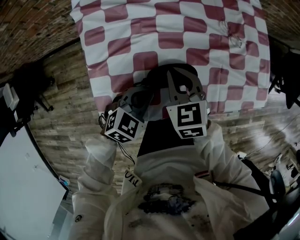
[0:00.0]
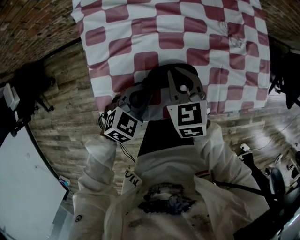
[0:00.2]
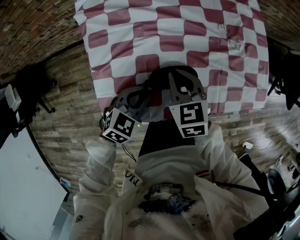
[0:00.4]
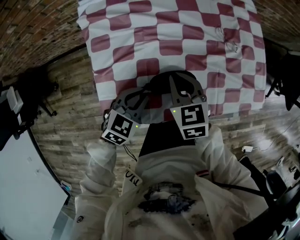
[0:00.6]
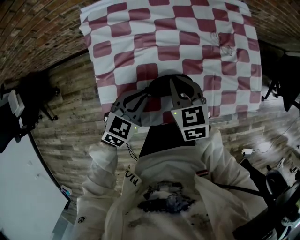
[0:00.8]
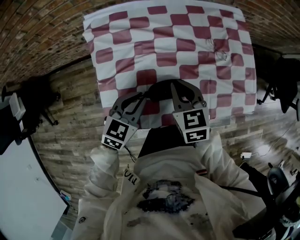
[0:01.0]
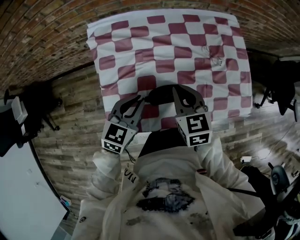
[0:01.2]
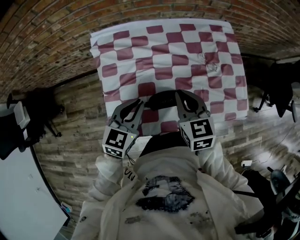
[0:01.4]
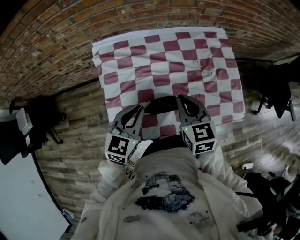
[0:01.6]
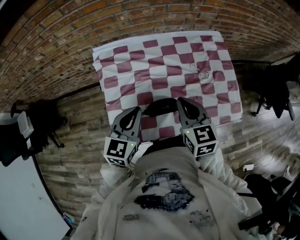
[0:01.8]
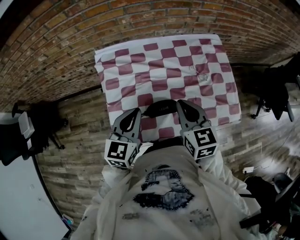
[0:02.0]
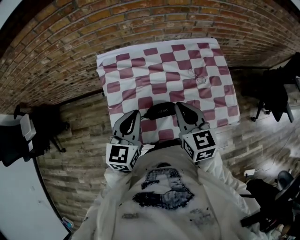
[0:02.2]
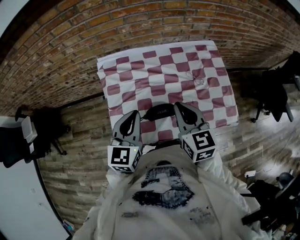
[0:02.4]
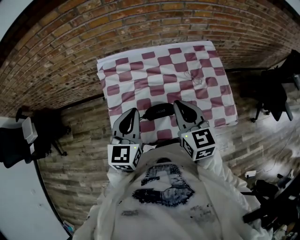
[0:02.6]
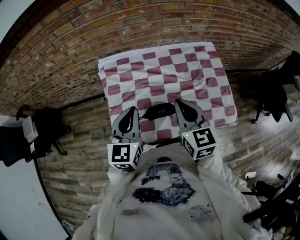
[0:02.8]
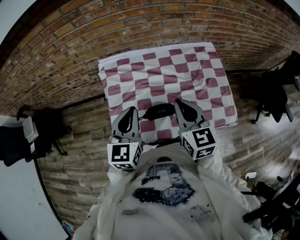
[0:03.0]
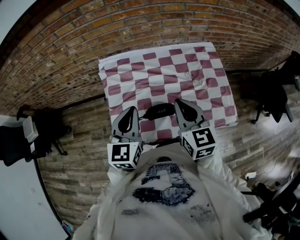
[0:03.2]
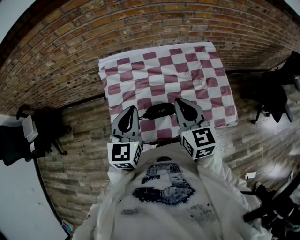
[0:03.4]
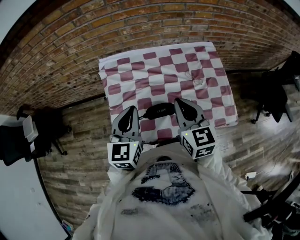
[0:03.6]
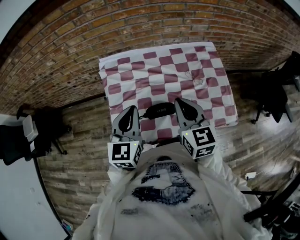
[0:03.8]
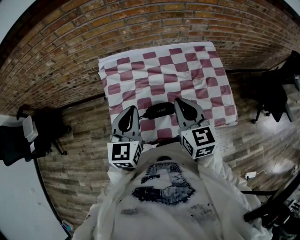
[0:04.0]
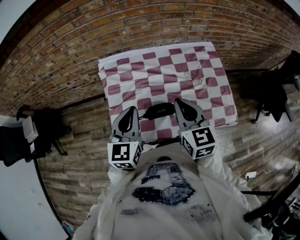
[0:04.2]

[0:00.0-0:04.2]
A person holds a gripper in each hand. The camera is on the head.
0:00.0 to 0:01.4: Both grippers move upward, roughly 15 cm. The left gripper turns by some 30 degrees.
0:01.4 to 0:02.8: Both grippers travel together upward, approximately 15 cm. The left gripper changes its angle by about 20 degrees.
0:02.8 to 0:04.2: Both grippers stay about where they are.

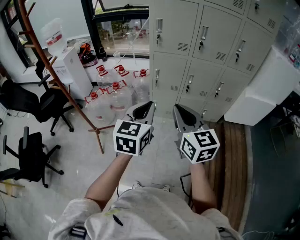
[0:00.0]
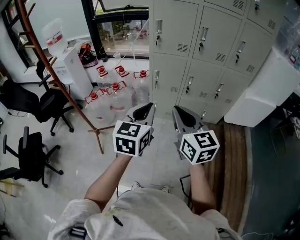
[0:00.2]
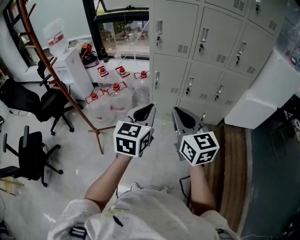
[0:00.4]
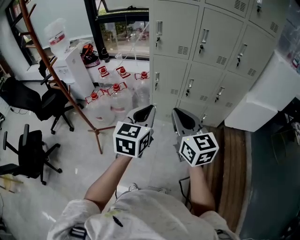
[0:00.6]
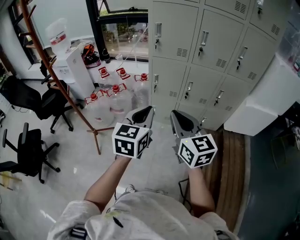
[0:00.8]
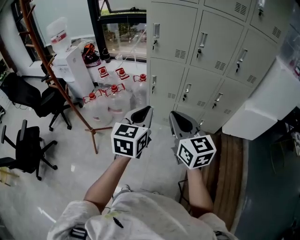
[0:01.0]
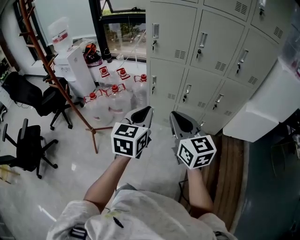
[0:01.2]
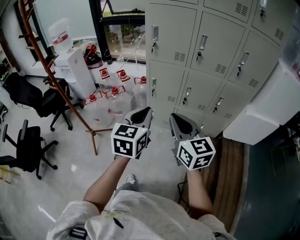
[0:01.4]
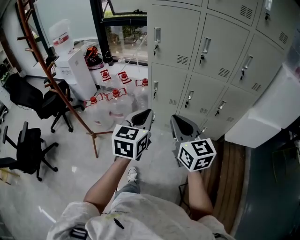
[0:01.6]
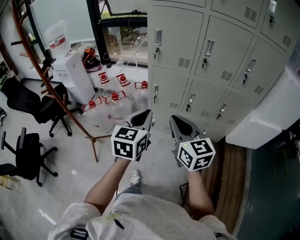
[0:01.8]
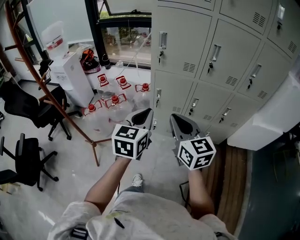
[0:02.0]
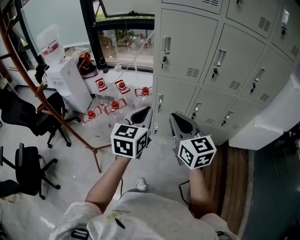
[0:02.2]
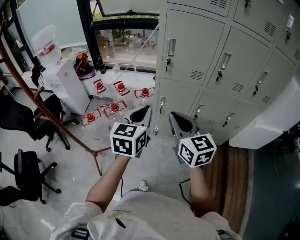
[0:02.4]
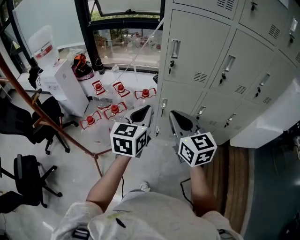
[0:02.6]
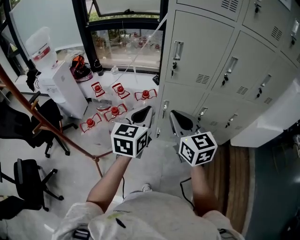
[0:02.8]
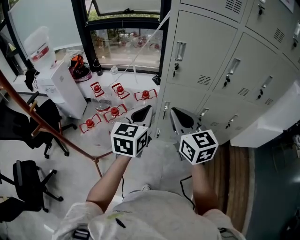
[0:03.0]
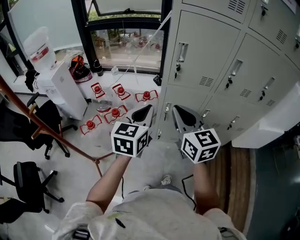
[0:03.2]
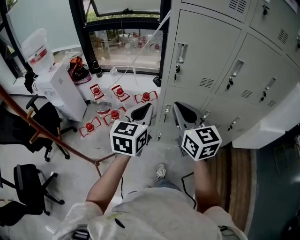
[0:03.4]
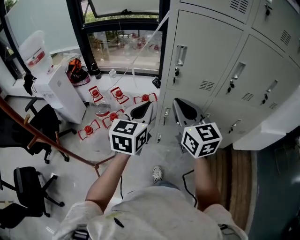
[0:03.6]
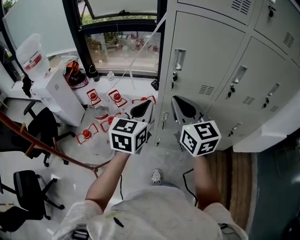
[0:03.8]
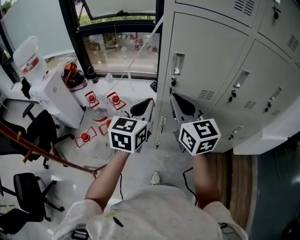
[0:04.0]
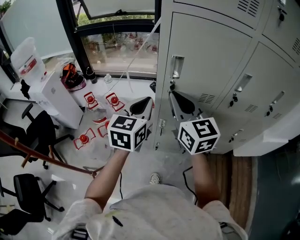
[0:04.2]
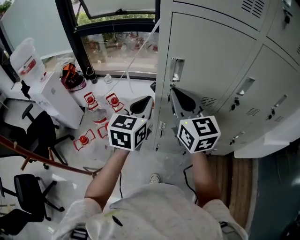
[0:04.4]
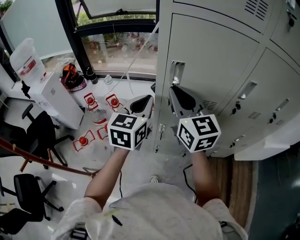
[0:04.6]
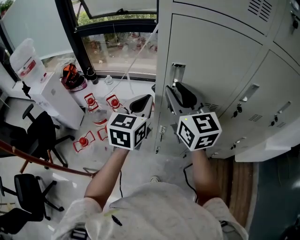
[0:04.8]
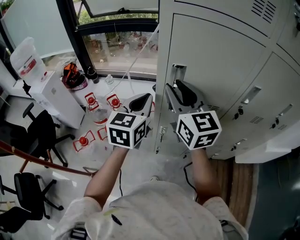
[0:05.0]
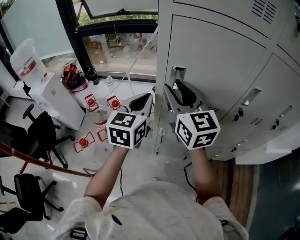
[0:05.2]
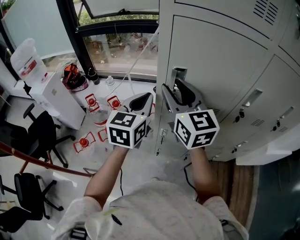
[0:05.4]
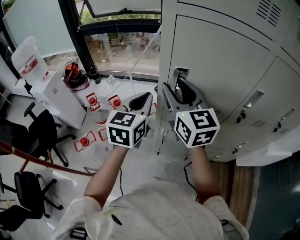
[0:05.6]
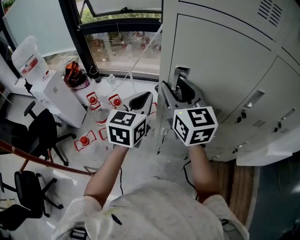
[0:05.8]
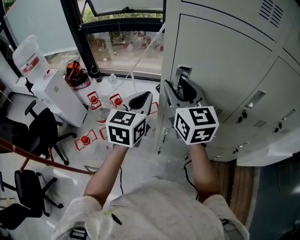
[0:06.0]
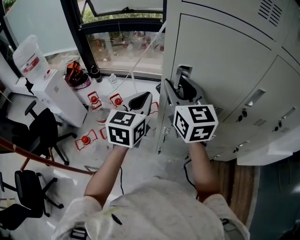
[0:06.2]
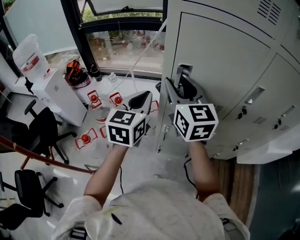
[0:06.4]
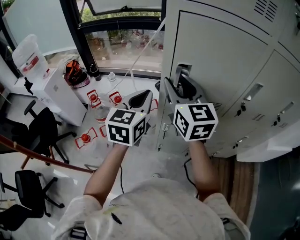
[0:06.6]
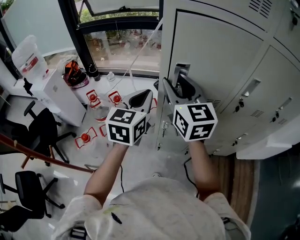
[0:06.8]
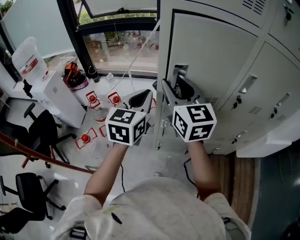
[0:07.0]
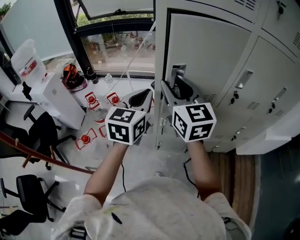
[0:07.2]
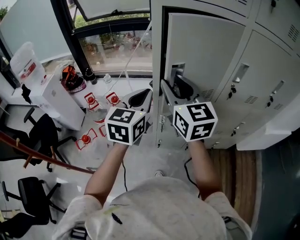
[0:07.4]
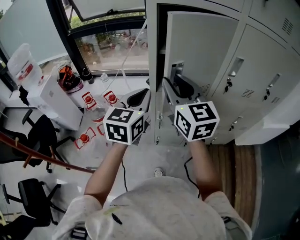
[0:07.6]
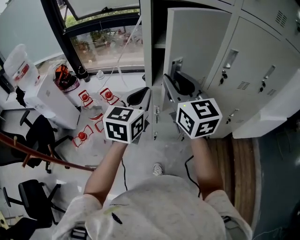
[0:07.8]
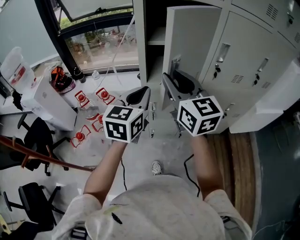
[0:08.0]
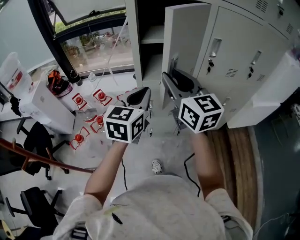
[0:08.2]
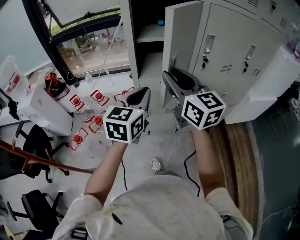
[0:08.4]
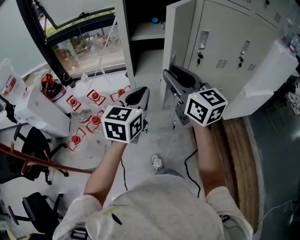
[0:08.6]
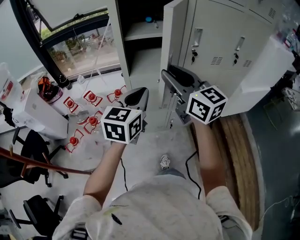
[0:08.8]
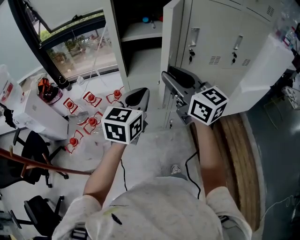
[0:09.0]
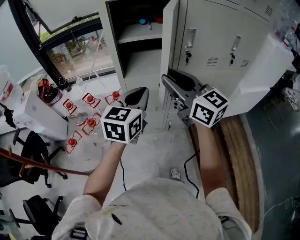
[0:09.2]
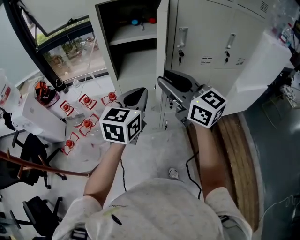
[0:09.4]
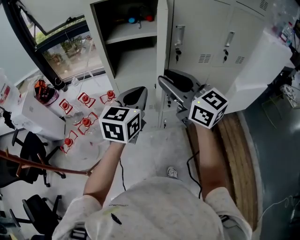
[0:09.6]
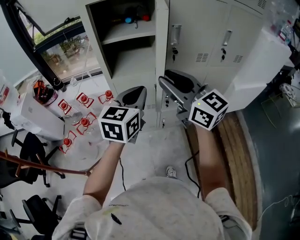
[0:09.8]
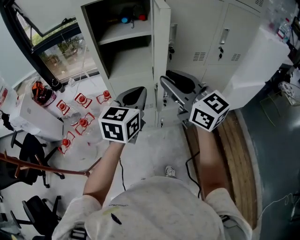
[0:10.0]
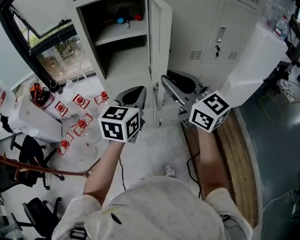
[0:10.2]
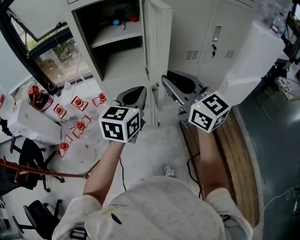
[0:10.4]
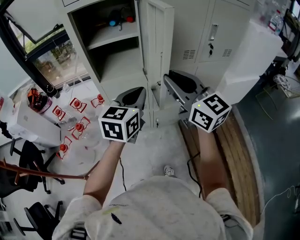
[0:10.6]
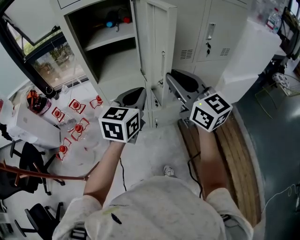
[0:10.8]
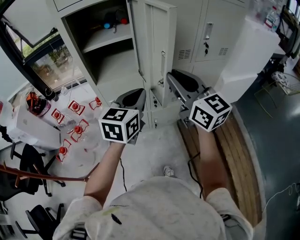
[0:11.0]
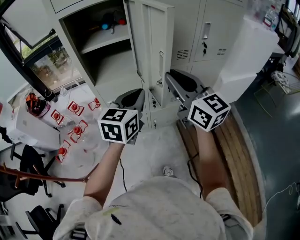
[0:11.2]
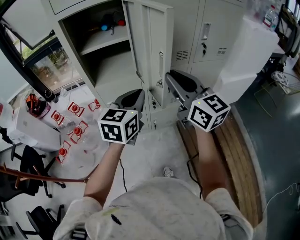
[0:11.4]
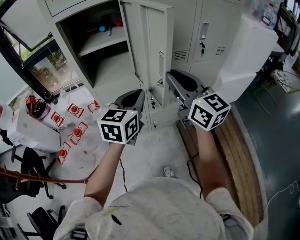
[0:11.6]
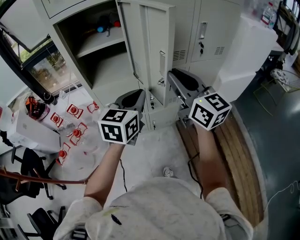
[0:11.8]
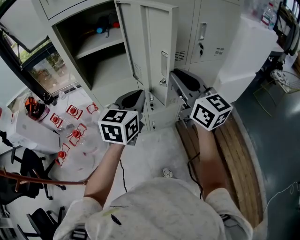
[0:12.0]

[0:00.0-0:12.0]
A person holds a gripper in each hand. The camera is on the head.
0:00.0 to 0:01.6: Both grippers move to the right and forward, about 10 cm.
0:01.6 to 0:03.0: The two grippers go approximately 30 cm forward and to the left.
0:03.0 to 0:04.4: Both grippers move forward, approximately 20 cm.
0:04.4 to 0:06.0: The two grippers go approximately 5 cm forward. The right gripper opens.
0:06.0 to 0:07.6: The two grippers go approximately 10 cm backward.
0:07.6 to 0:09.0: Both grippers travel together to the right and backward, about 15 cm.
0:09.0 to 0:10.4: Both grippers move to the right, approximately 10 cm.
0:10.4 to 0:12.0: The right gripper moves to the right, about 10 cm; the left gripper goes some 5 cm to the right.

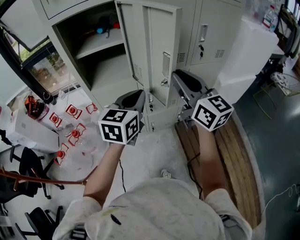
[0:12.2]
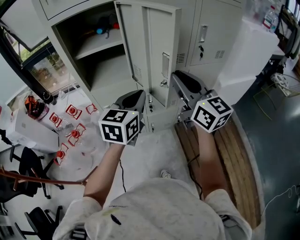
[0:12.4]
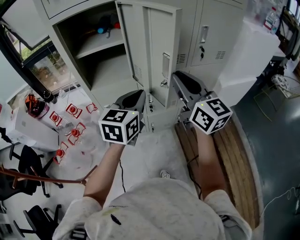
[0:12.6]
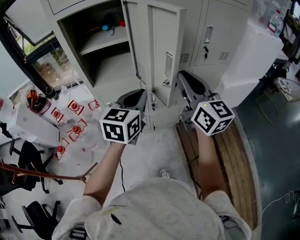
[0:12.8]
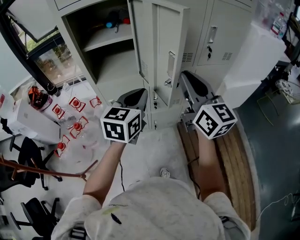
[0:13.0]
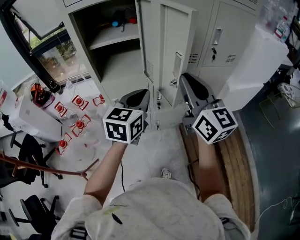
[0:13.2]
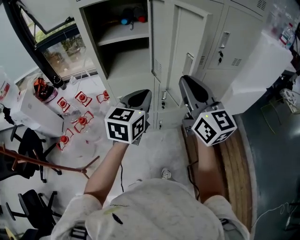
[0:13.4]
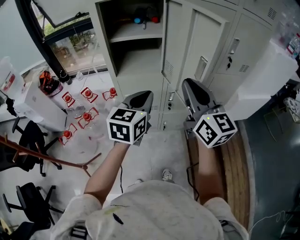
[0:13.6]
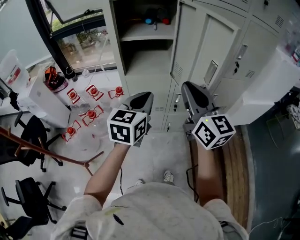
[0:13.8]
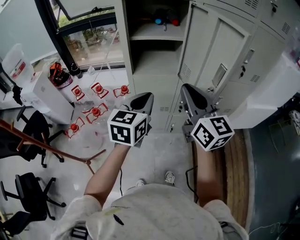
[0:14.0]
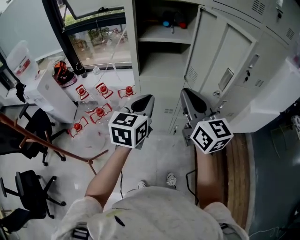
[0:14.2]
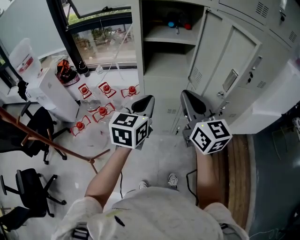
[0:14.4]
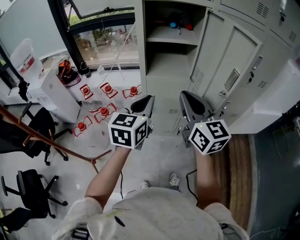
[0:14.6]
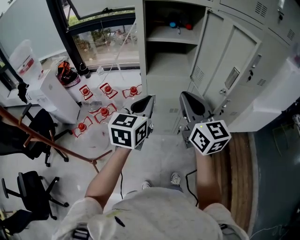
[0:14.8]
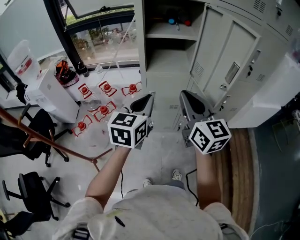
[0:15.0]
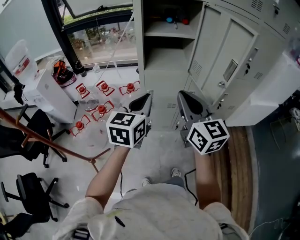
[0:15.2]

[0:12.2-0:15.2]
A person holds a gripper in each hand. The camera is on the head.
0:12.2 to 0:13.8: Both grippers move to the left, some 10 cm.
0:13.8 to 0:15.2: The two grippers go approximately 10 cm to the left.

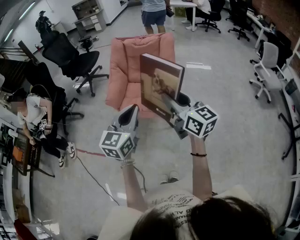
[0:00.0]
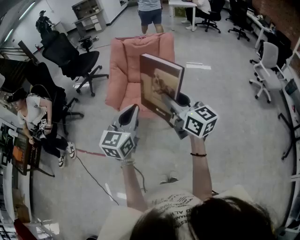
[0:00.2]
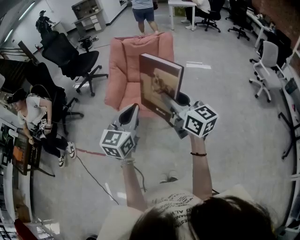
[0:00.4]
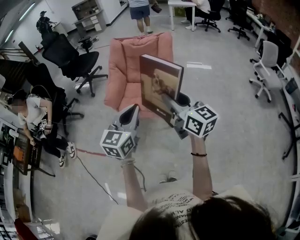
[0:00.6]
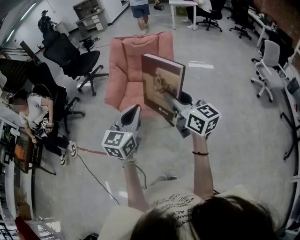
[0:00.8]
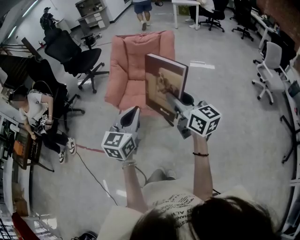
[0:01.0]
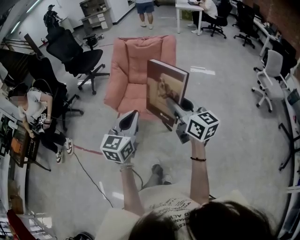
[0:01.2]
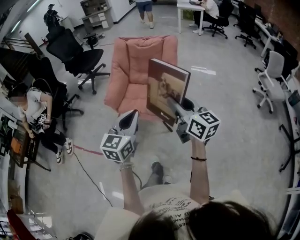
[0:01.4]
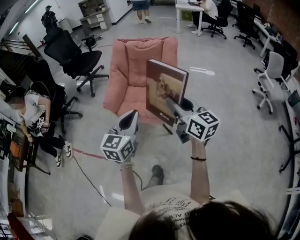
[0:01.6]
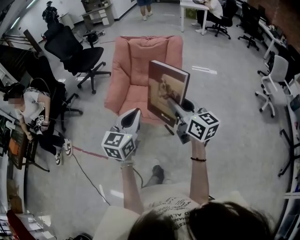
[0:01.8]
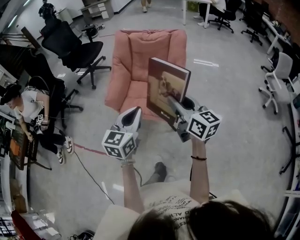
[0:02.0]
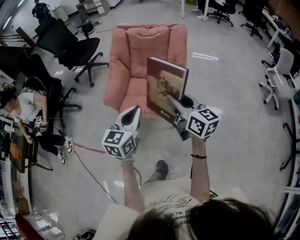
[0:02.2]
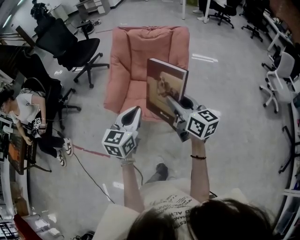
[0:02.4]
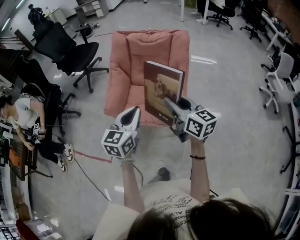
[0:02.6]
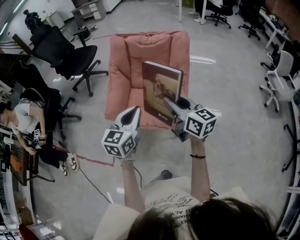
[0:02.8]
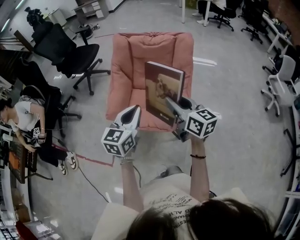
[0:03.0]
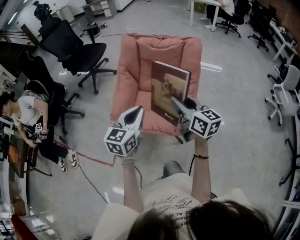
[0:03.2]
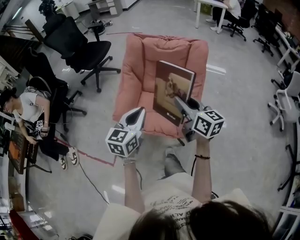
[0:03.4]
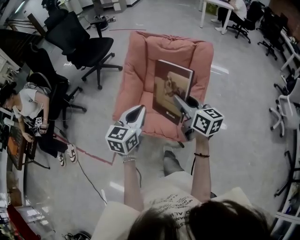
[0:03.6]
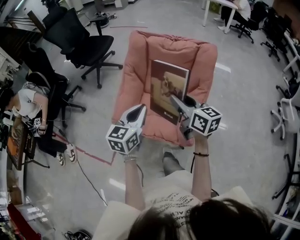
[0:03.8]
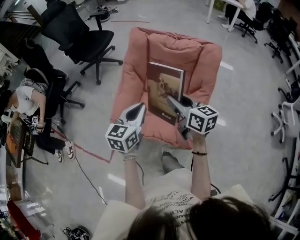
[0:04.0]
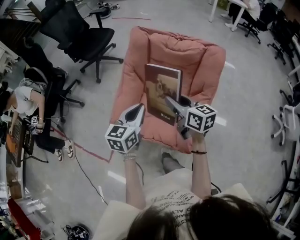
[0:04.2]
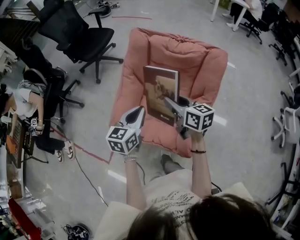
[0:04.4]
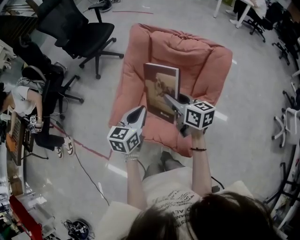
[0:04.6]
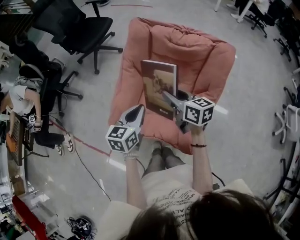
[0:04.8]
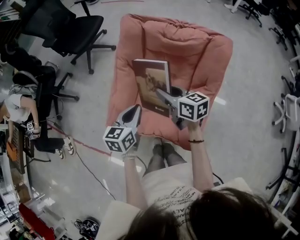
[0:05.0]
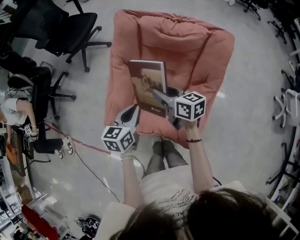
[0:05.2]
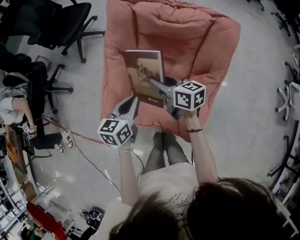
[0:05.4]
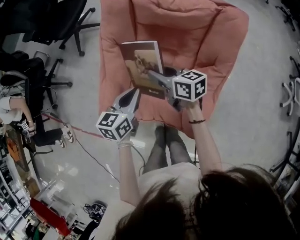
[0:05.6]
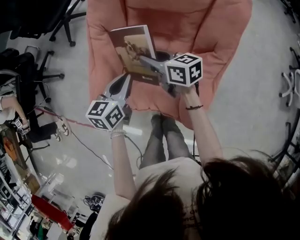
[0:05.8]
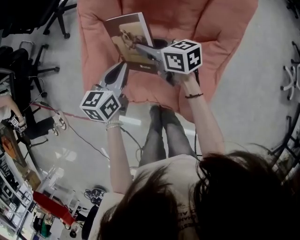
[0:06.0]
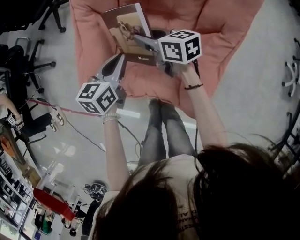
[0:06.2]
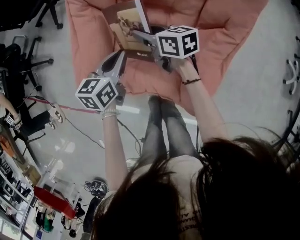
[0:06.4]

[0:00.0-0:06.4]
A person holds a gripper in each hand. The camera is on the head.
0:00.0 to 0:01.6: The left gripper ends up some 5 cm from where it was. Meanwhile the right gripper shifts about 5 cm forward.
0:01.6 to 0:03.2: The two grippers go some 25 cm forward.
0:03.2 to 0:04.8: Both grippers travel together forward and downward, approximately 30 cm. The right gripper changes its angle by roughly 20 degrees.
0:04.8 to 0:06.4: The two grippers go roughly 25 cm downward.
